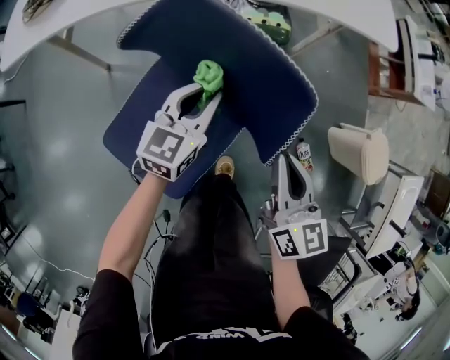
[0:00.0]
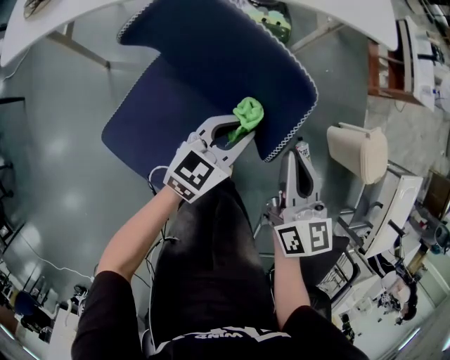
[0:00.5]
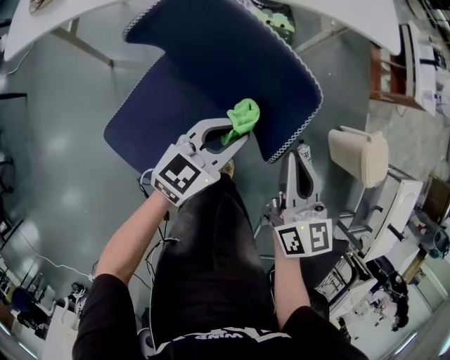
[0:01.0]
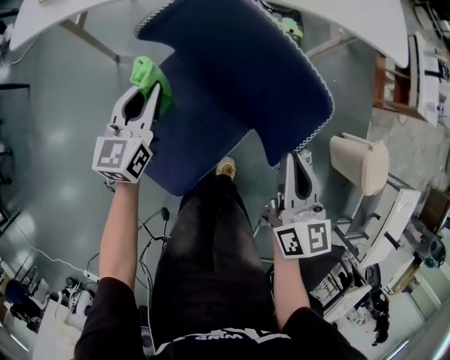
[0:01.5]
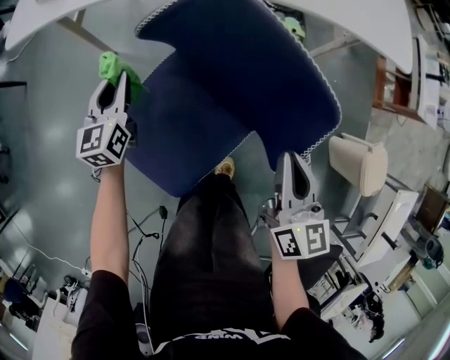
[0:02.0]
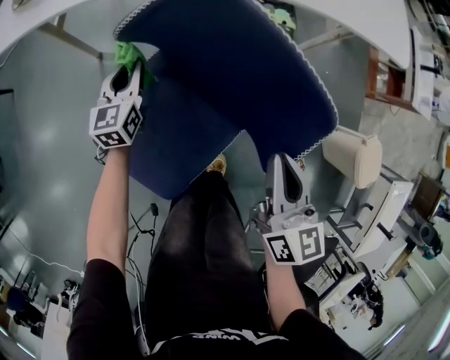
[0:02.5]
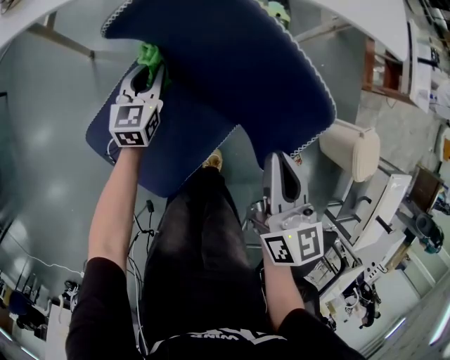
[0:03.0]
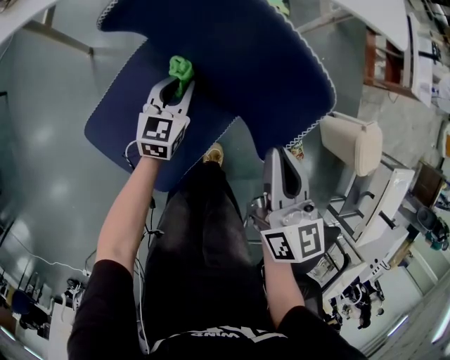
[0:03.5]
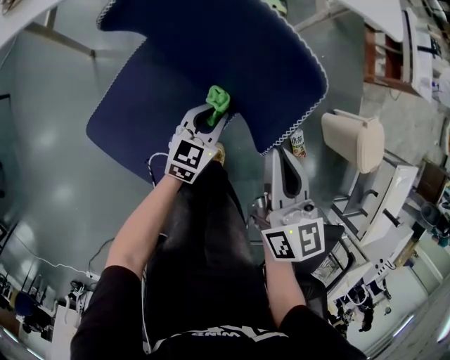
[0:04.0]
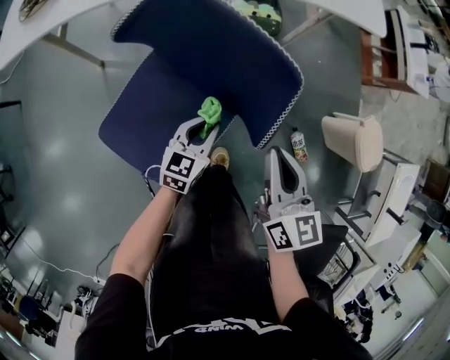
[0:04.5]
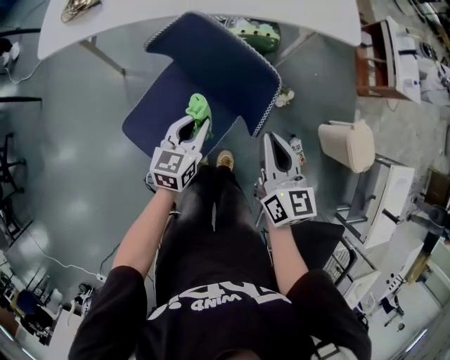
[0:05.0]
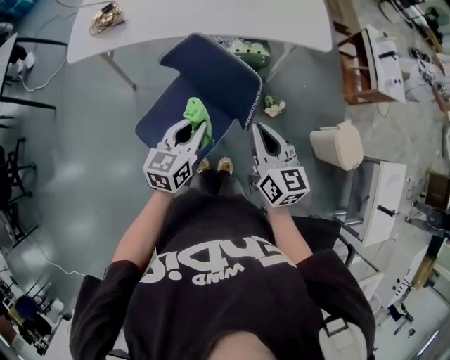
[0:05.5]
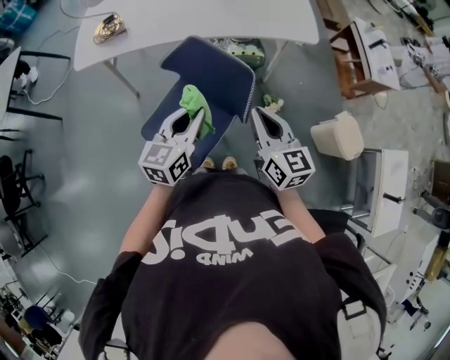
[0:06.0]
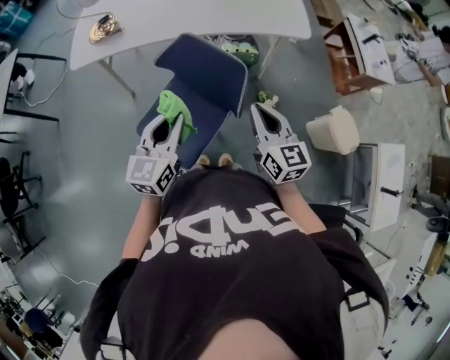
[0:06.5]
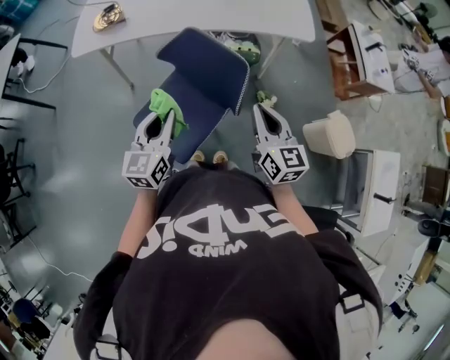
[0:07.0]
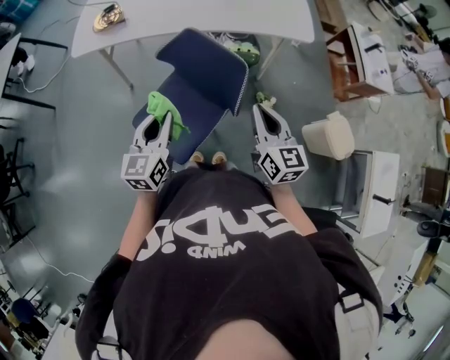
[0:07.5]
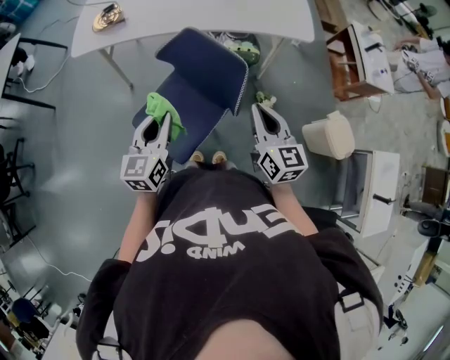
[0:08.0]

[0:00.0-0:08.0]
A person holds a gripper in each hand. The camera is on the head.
0:00.0 to 0:02.0: The left gripper moves roughly 25 cm, and turns by some 30 degrees.
0:02.0 to 0:04.0: The left gripper travels to the right by approximately 30 cm, and changes its angle by approximately 40 degrees.
0:04.0 to 0:06.0: The left gripper goes roughly 40 cm upward. Meanwhile the right gripper travels upward by approximately 25 cm.
0:06.0 to 0:08.0: The left gripper shifts some 5 cm to the left.

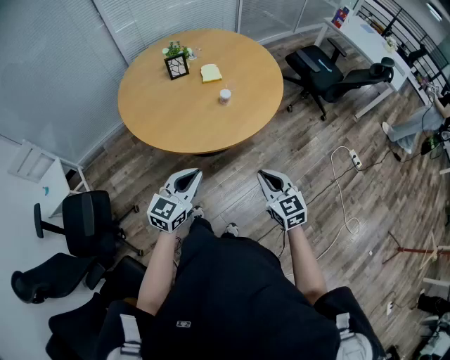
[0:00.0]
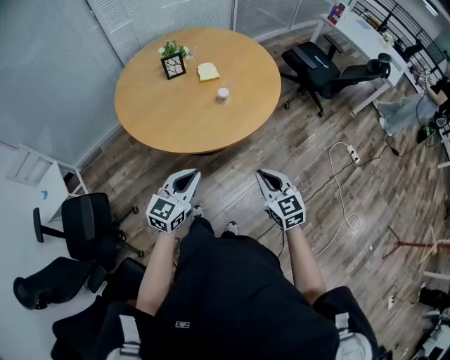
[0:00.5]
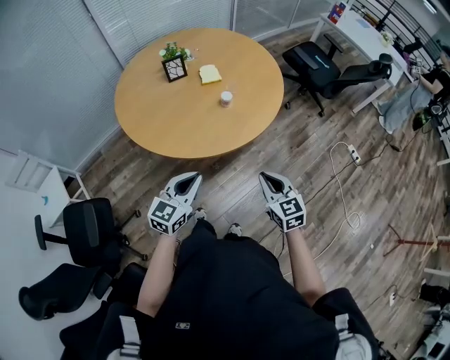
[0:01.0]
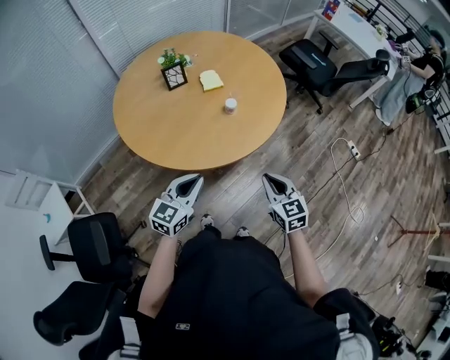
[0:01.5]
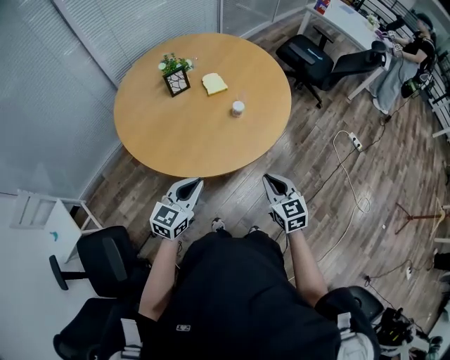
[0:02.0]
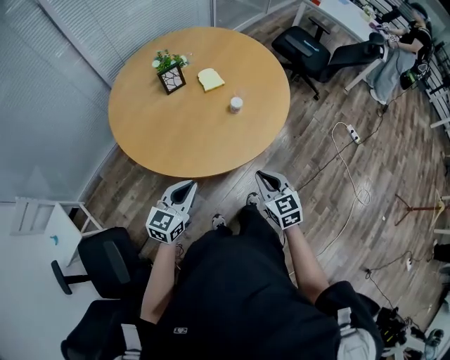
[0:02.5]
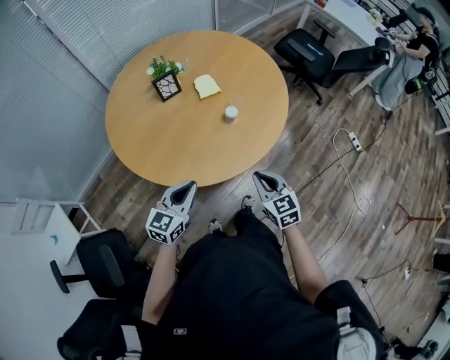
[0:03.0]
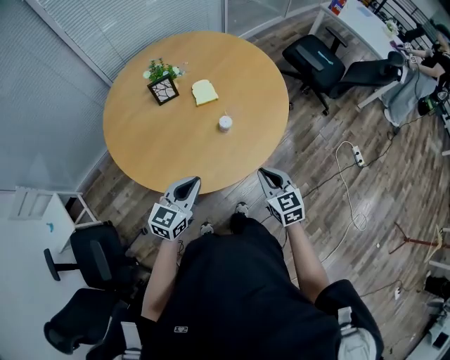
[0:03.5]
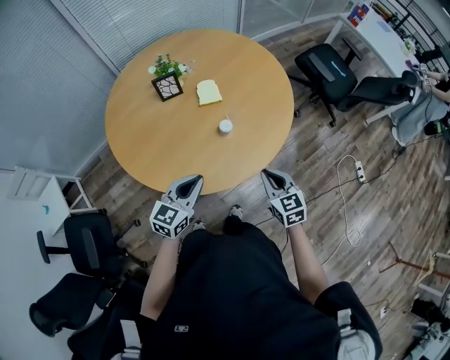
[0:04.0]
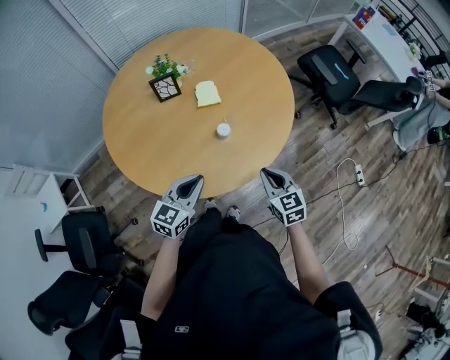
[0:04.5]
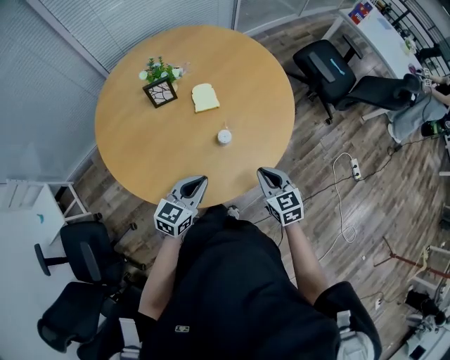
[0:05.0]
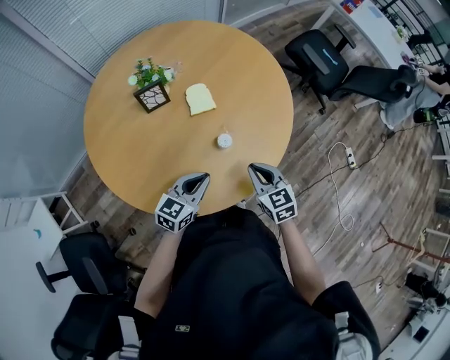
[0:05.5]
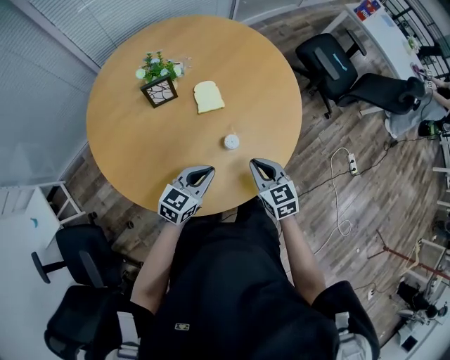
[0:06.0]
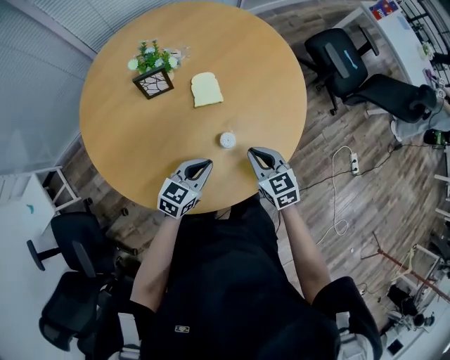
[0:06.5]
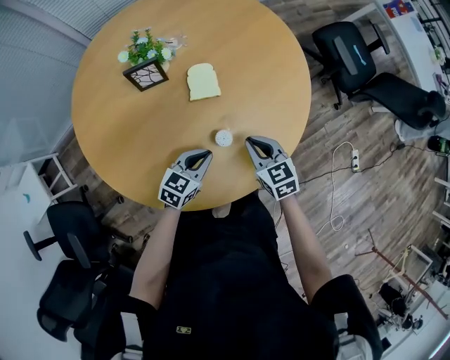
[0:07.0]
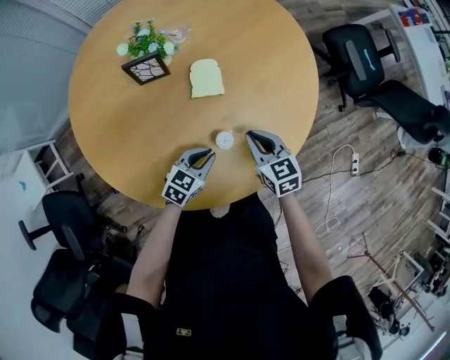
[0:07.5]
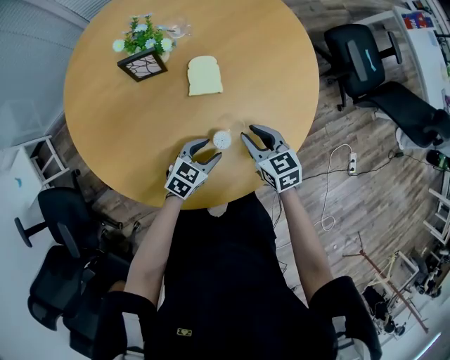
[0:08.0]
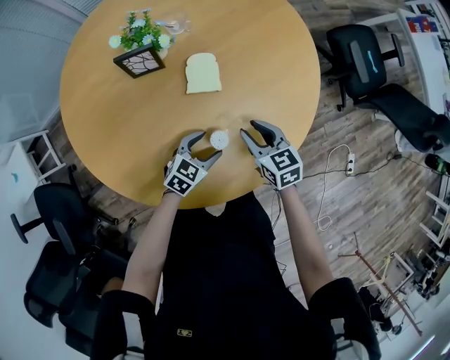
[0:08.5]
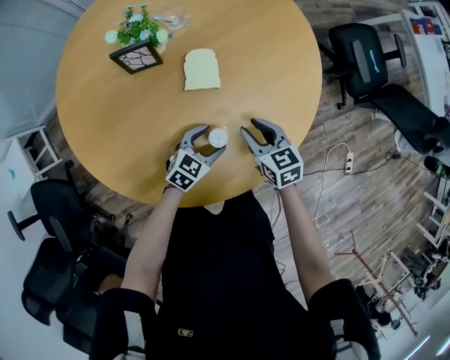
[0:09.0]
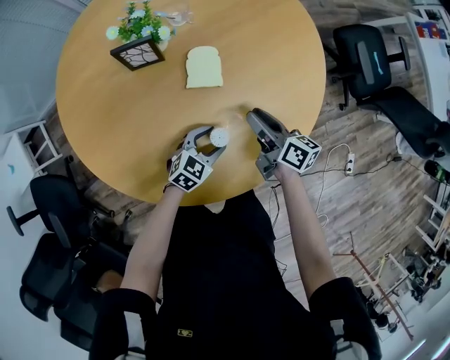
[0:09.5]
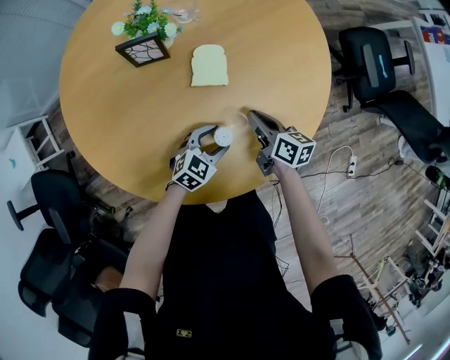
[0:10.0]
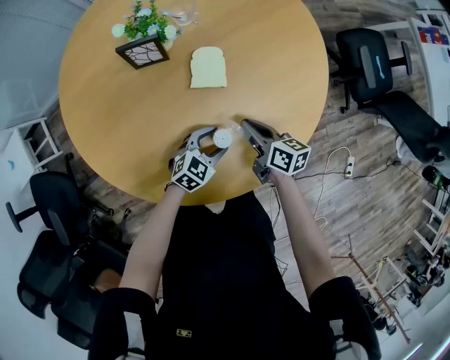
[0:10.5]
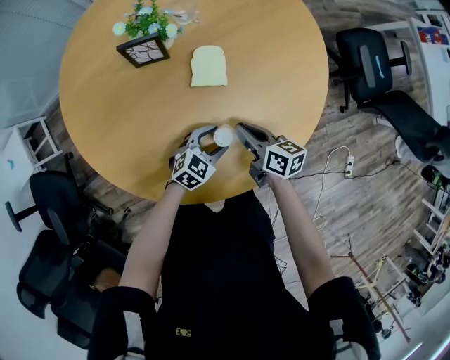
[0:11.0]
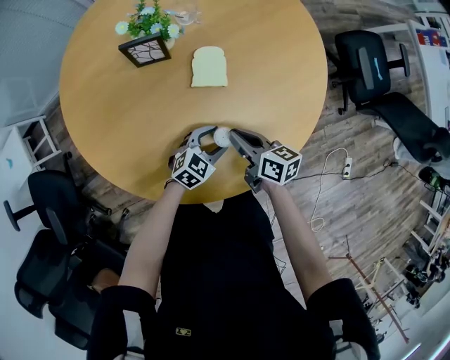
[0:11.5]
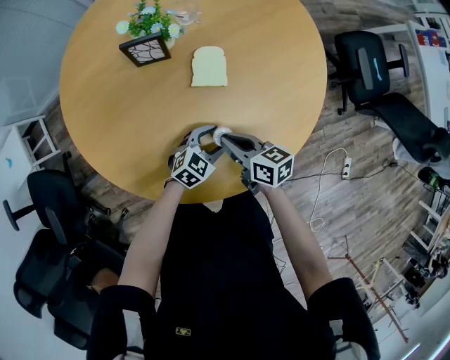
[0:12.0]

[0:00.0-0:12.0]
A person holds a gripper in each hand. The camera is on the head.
0:00.0 to 0:02.0: Both grippers travel together to the left and forward, roughly 15 cm.
0:02.0 to 0:04.0: Both grippers travel together forward and to the right, approximately 20 cm.
0:04.0 to 0:06.0: The right gripper shifts approximately 15 cm forward and to the left. Meanwhile the left gripper is displaced forward and downward by some 15 cm.
0:06.0 to 0:08.0: The right gripper travels forward and downward by about 15 cm, and opens. Meanwhile the left gripper is displaced downward and forward by approximately 15 cm, and opens its fingers.
0:08.0 to 0:10.0: The right gripper shifts by some 5 cm, rotates some 40 degrees, and closes up.
0:10.0 to 0:12.0: The right gripper travels to the left and backward by approximately 10 cm.

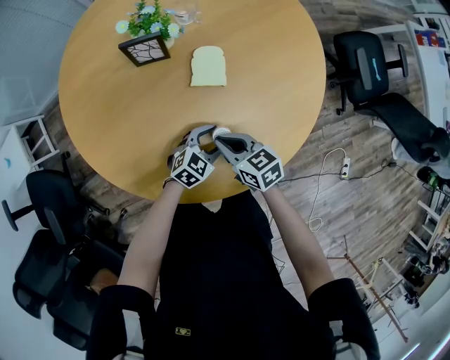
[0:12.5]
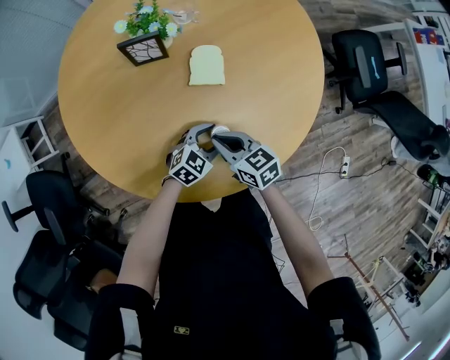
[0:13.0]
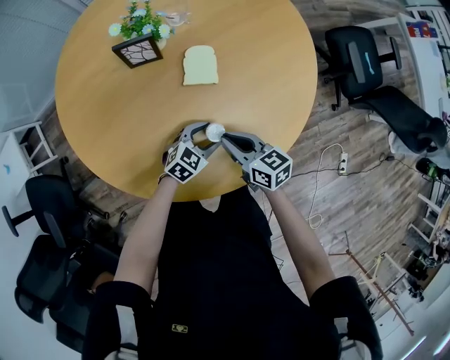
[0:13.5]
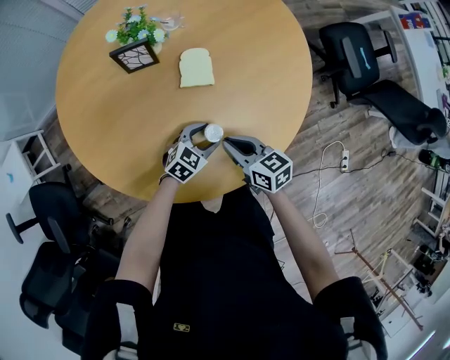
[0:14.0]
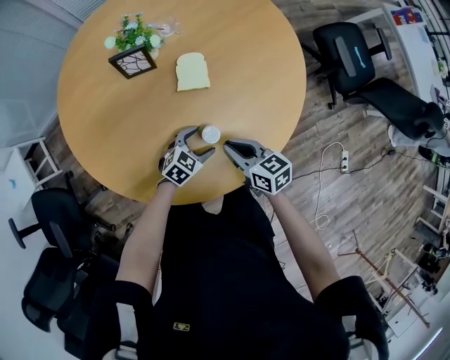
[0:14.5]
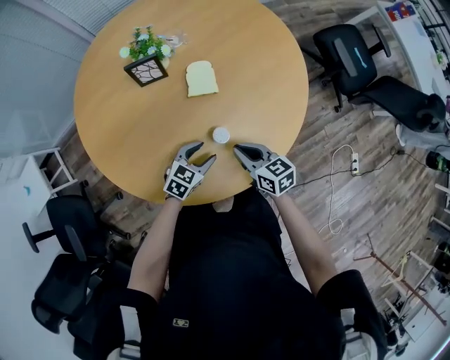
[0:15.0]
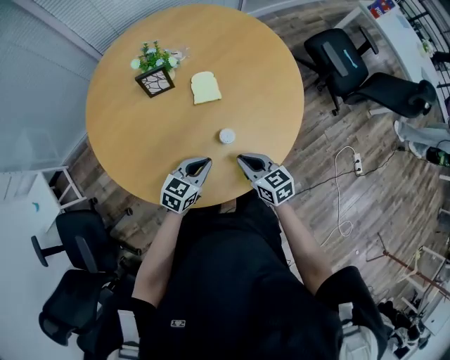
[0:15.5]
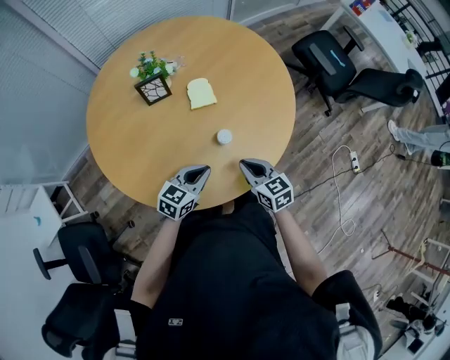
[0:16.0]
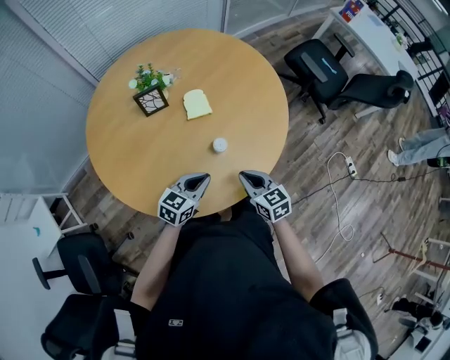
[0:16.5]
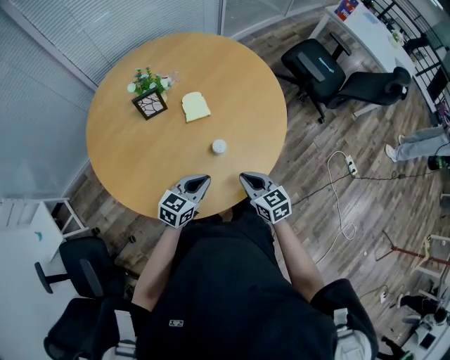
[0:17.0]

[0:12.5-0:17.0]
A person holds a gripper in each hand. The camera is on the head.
0:12.5 to 0:14.5: The right gripper shifts about 5 cm to the right.
0:14.5 to 0:17.0: The right gripper heads backward, covering approximately 10 cm, and changes its angle by roughly 20 degrees. The left gripper heads upward and backward, covering about 20 cm, changes its angle by some 20 degrees, and closes its fingers.

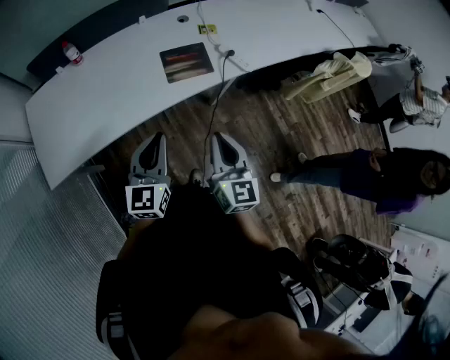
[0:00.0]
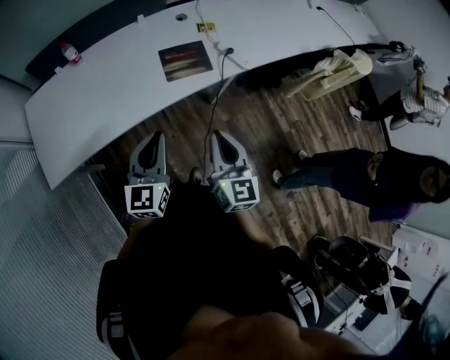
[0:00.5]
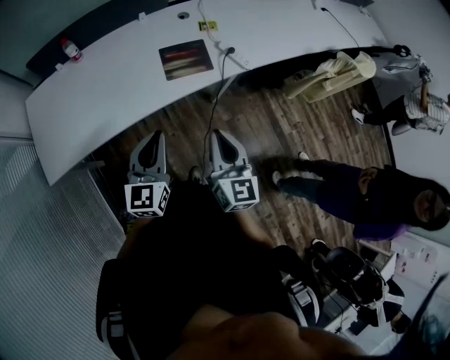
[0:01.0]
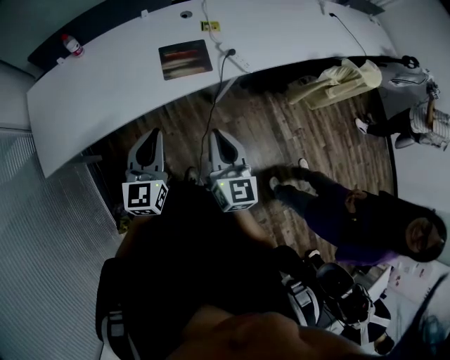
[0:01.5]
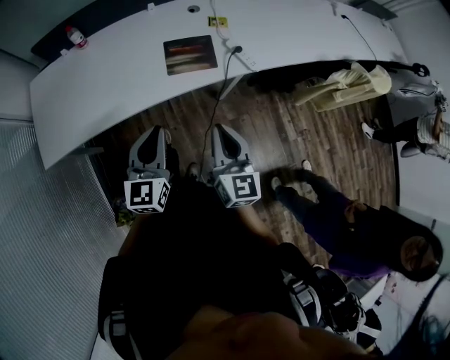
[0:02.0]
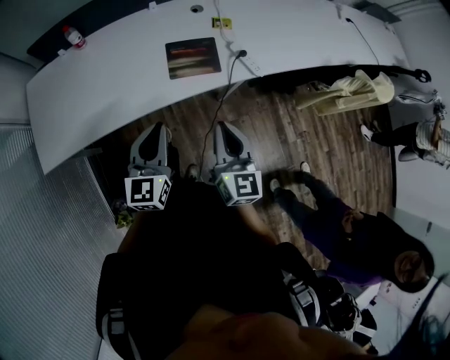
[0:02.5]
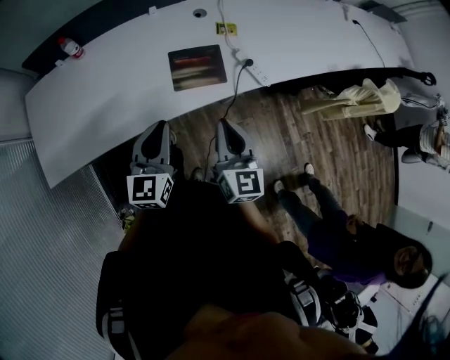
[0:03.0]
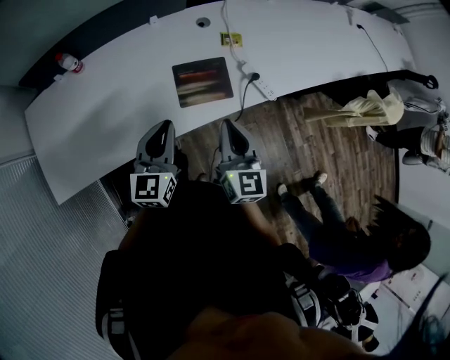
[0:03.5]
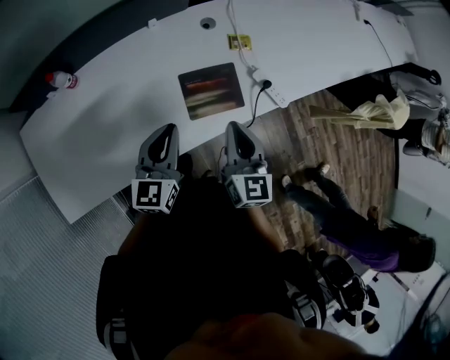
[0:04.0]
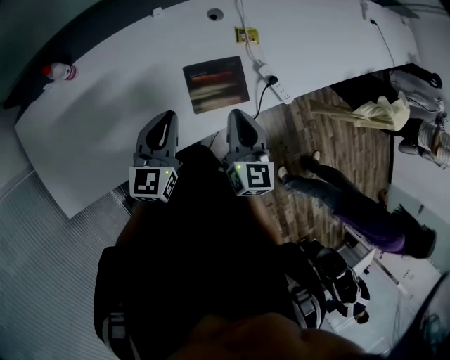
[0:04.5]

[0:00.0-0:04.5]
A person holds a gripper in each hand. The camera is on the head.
0:00.0 to 0:02.0: The grippers both shift to the right by about 5 cm.
0:02.0 to 0:04.5: Both grippers travel together forward and to the left, roughly 35 cm.
